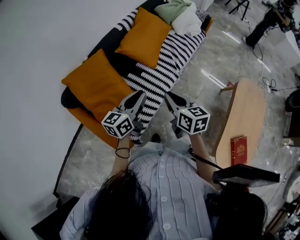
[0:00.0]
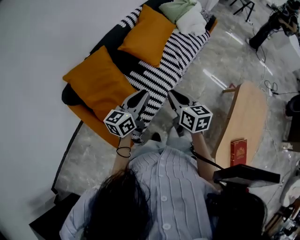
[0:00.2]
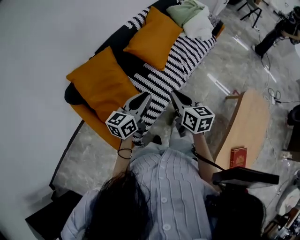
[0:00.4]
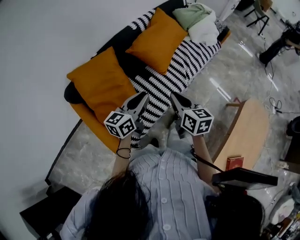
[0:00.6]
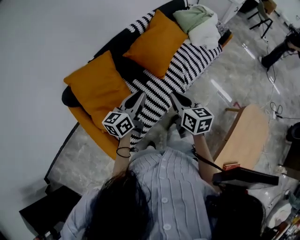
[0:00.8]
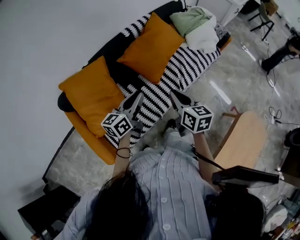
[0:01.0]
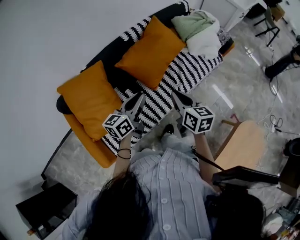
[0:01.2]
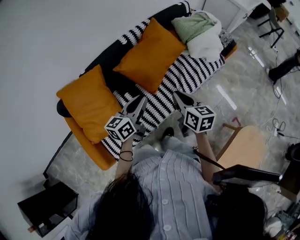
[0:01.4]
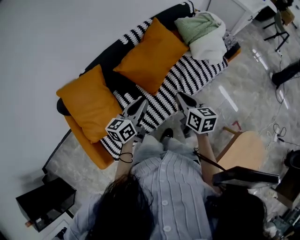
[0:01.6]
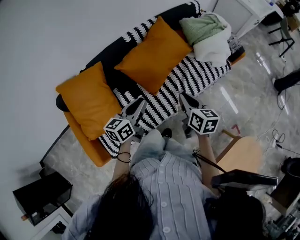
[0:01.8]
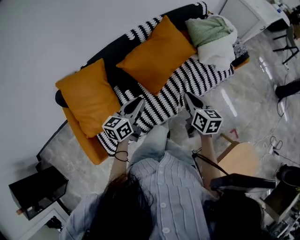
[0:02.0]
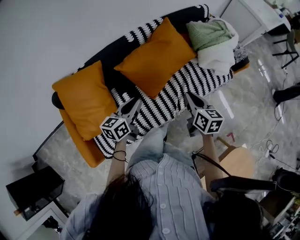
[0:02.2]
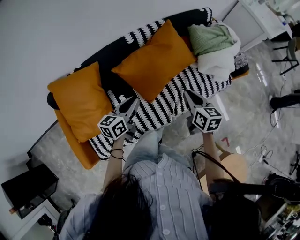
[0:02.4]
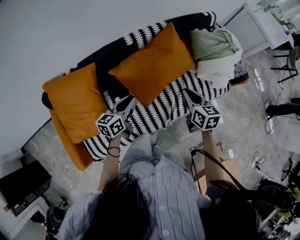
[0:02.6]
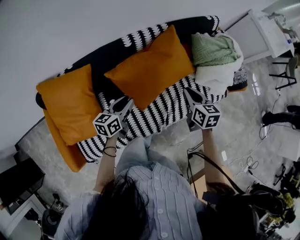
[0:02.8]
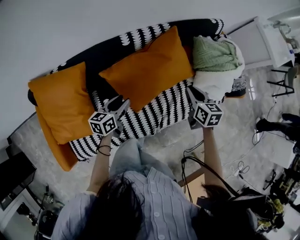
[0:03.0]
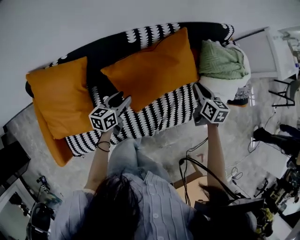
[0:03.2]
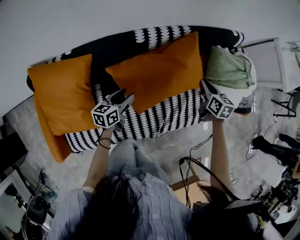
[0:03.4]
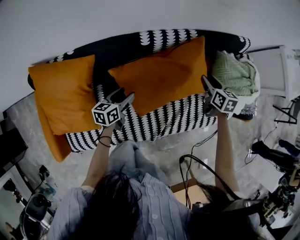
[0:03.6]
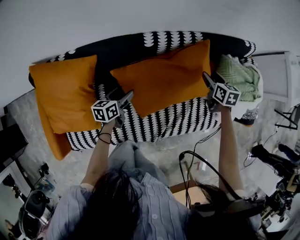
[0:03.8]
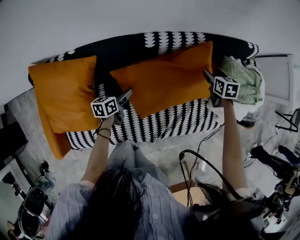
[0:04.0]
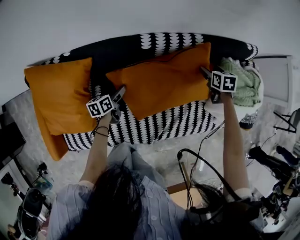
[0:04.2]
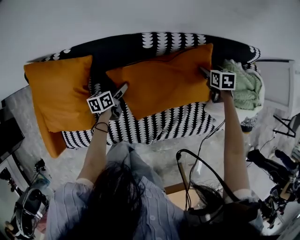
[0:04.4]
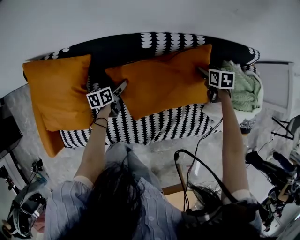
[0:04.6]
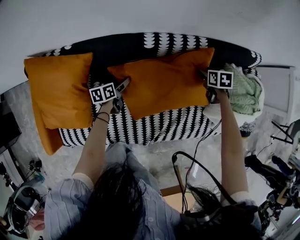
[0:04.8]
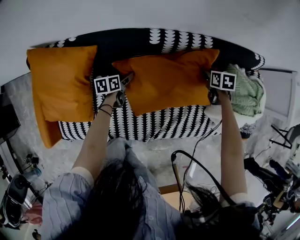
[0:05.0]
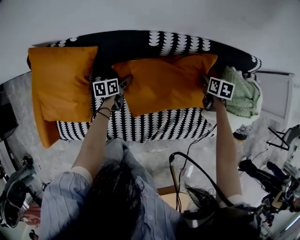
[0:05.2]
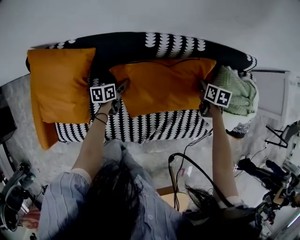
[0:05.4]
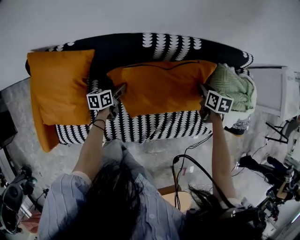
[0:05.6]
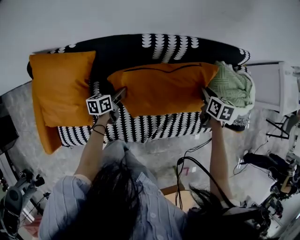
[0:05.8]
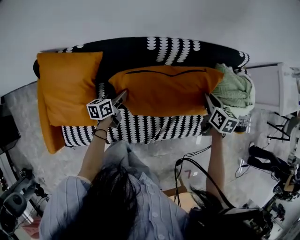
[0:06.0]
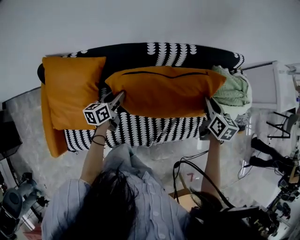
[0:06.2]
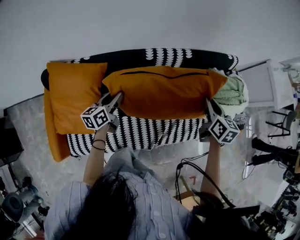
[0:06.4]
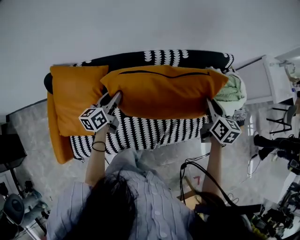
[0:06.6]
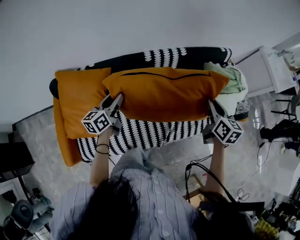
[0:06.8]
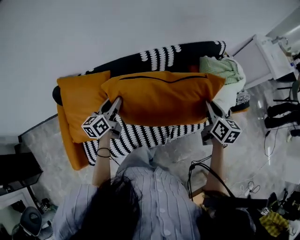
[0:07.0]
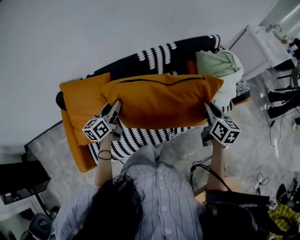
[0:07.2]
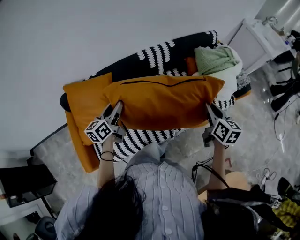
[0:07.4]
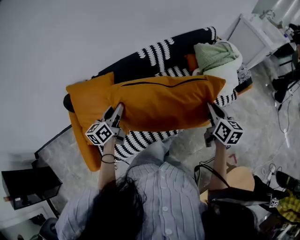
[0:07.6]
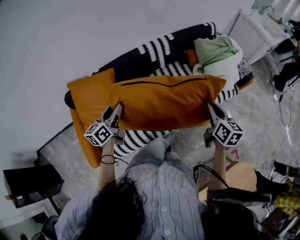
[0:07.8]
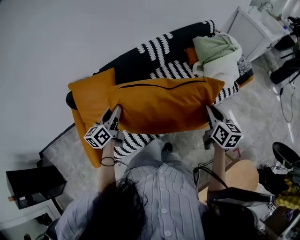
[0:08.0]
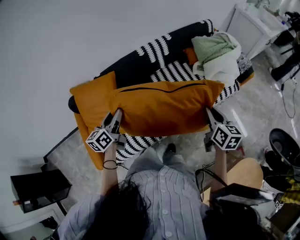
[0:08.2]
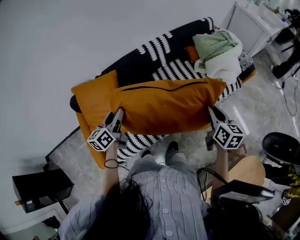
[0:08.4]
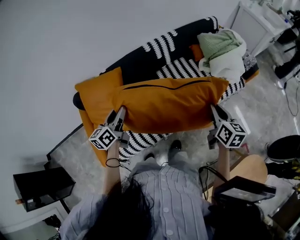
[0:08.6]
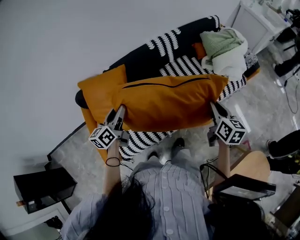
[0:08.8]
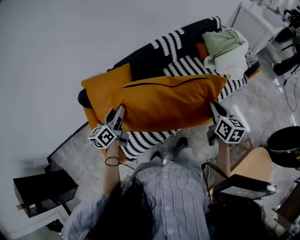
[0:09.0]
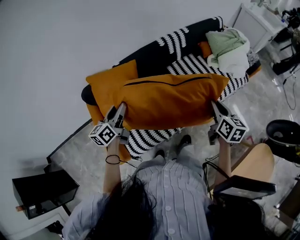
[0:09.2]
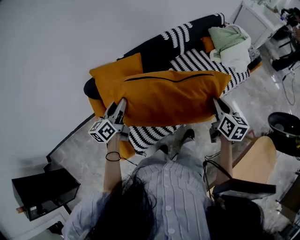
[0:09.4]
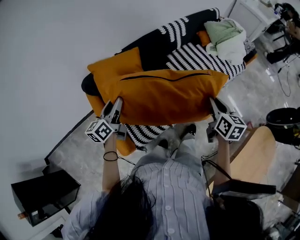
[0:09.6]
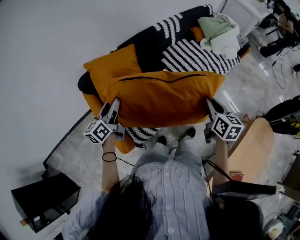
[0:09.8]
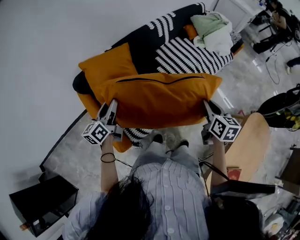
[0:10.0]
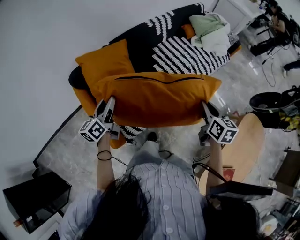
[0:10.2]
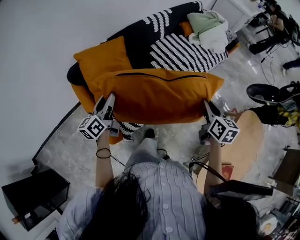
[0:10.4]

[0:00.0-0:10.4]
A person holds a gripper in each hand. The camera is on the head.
0:00.0 to 0:01.4: The grippers both shift forward and to the right by about 30 cm.
0:01.4 to 0:03.0: The left gripper goes some 30 cm forward and downward, and turns by some 20 degrees. The right gripper travels forward by some 35 cm, and swivels roughly 20 degrees.
0:03.0 to 0:04.4: The left gripper shifts approximately 25 cm downward, forward and to the left, rotates approximately 30 degrees, and opens, while the right gripper is displaced forward and downward by roughly 30 cm, swivels roughly 30 degrees, and opens.
0:04.4 to 0:06.0: The right gripper shifts about 20 cm backward and upward, changes its angle by approximately 30 degrees, and closes up. Meanwhile the left gripper travels upward and backward by about 10 cm, and closes its fingers.
0:06.0 to 0:07.4: The right gripper moves backward and upward, about 35 cm, and rotates some 30 degrees; the left gripper heads upward and backward, covering about 30 cm, and swivels approximately 20 degrees.
0:07.4 to 0:09.0: The right gripper moves backward and to the left, about 15 cm; the left gripper is displaced to the left and backward by roughly 15 cm.
0:09.0 to 0:10.4: The right gripper is displaced backward by about 25 cm, while the left gripper moves backward and to the left, about 20 cm.

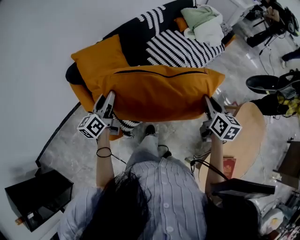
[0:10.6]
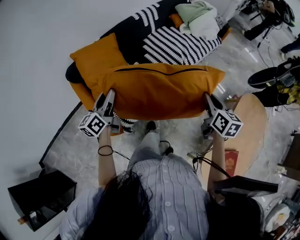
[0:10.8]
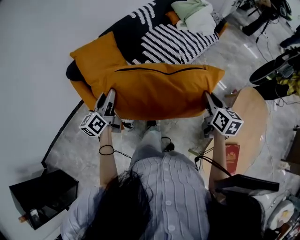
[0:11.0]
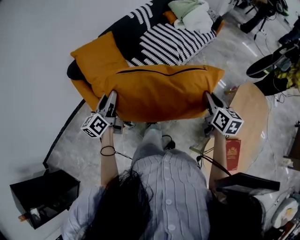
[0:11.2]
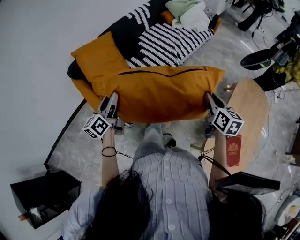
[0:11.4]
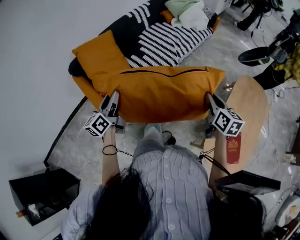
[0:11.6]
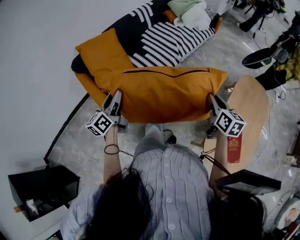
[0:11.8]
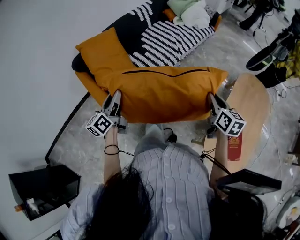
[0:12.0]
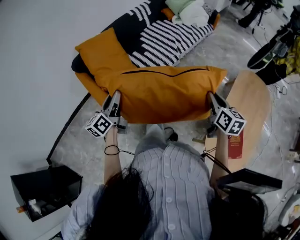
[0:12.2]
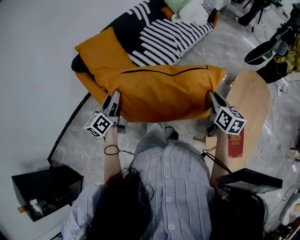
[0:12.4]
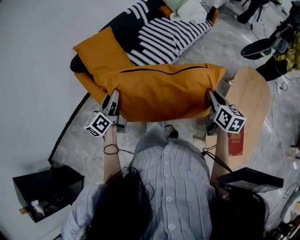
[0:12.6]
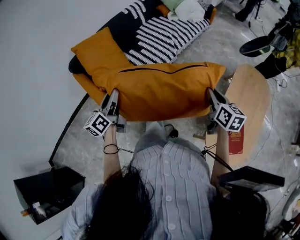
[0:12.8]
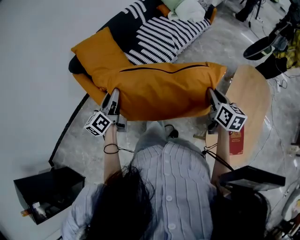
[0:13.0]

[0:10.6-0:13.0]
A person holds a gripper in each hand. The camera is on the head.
0:10.6 to 0:11.8: Both grippers travel together backward and to the right, roughly 25 cm.
0:11.8 to 0:13.0: There are only small adjustments of the grippers.

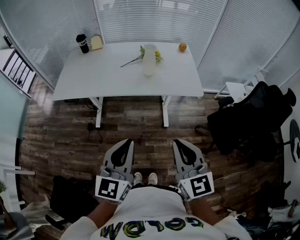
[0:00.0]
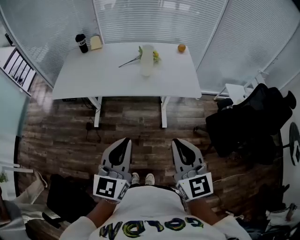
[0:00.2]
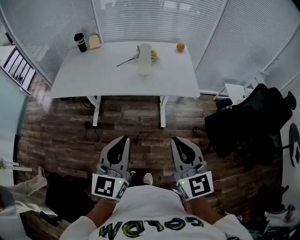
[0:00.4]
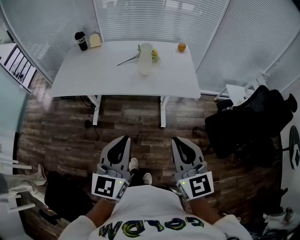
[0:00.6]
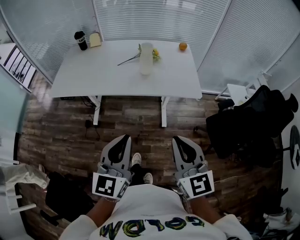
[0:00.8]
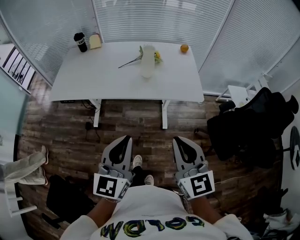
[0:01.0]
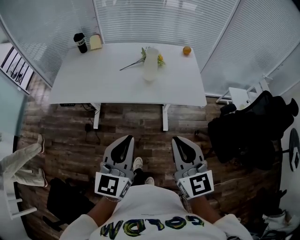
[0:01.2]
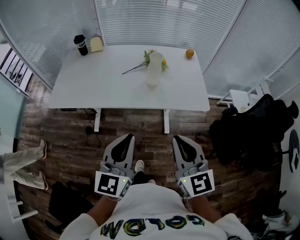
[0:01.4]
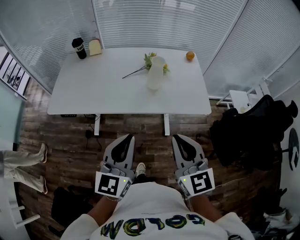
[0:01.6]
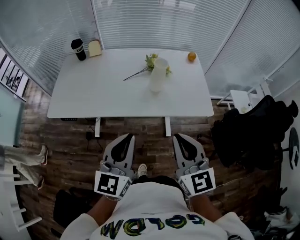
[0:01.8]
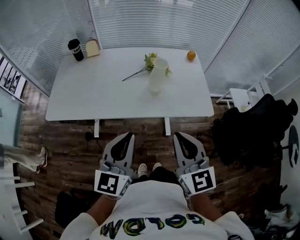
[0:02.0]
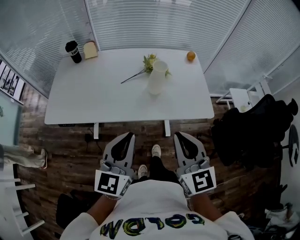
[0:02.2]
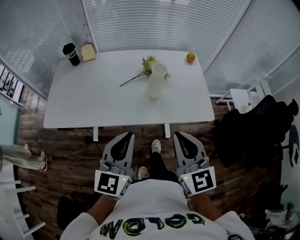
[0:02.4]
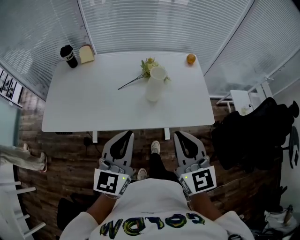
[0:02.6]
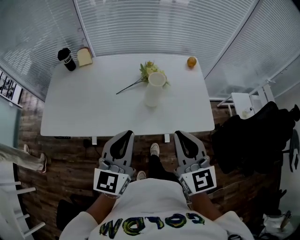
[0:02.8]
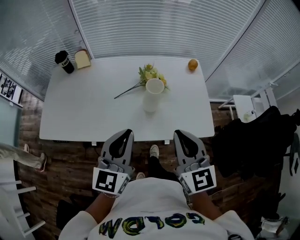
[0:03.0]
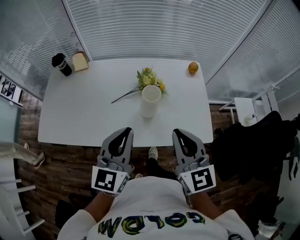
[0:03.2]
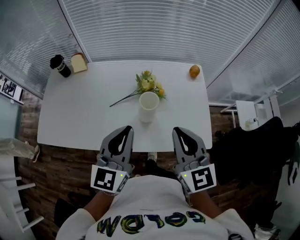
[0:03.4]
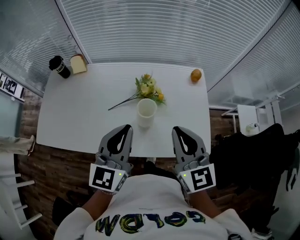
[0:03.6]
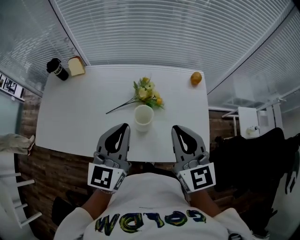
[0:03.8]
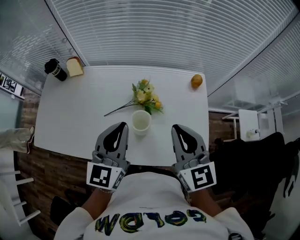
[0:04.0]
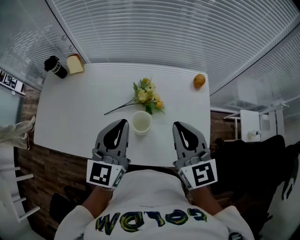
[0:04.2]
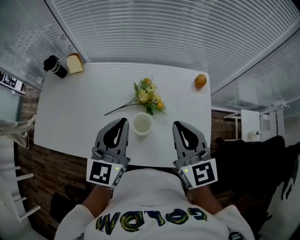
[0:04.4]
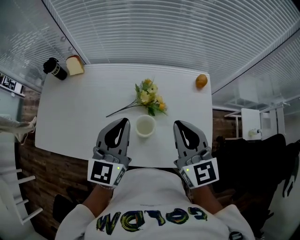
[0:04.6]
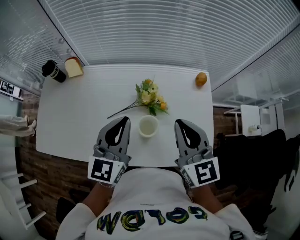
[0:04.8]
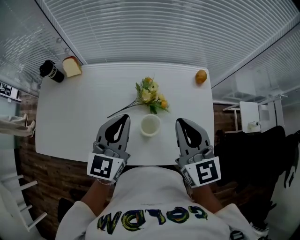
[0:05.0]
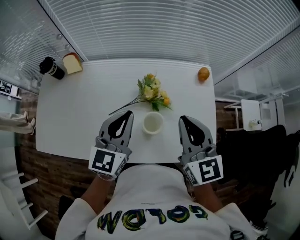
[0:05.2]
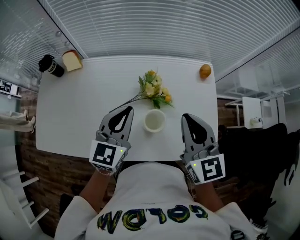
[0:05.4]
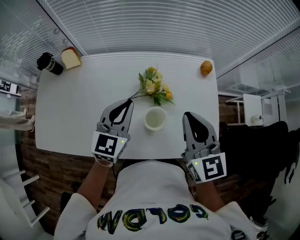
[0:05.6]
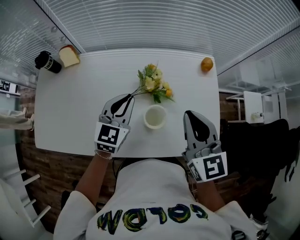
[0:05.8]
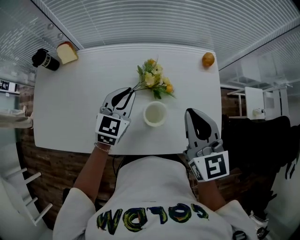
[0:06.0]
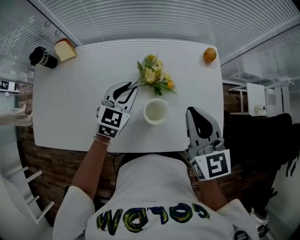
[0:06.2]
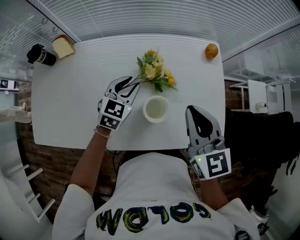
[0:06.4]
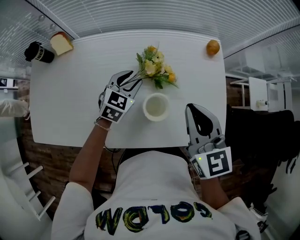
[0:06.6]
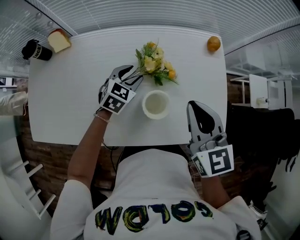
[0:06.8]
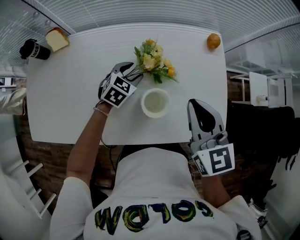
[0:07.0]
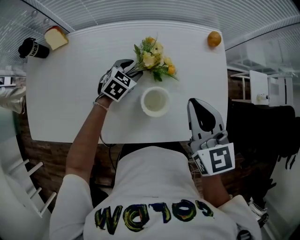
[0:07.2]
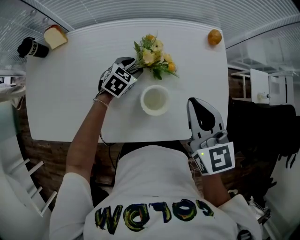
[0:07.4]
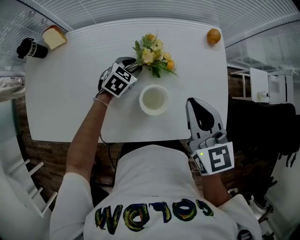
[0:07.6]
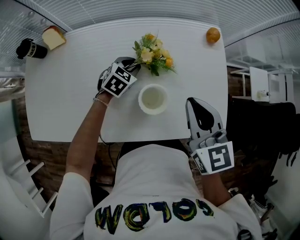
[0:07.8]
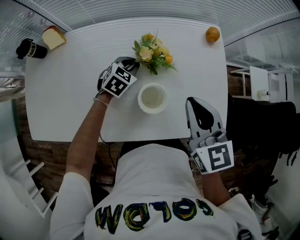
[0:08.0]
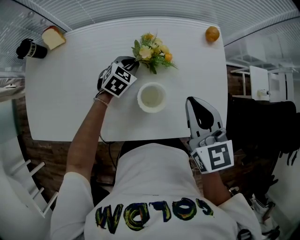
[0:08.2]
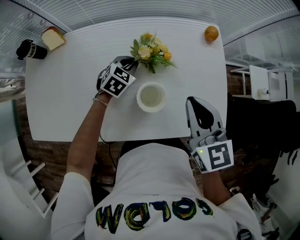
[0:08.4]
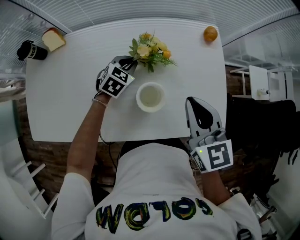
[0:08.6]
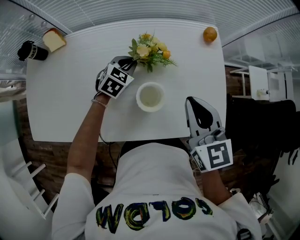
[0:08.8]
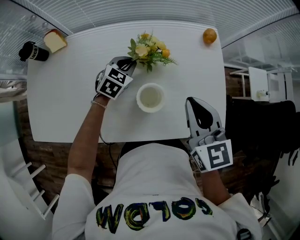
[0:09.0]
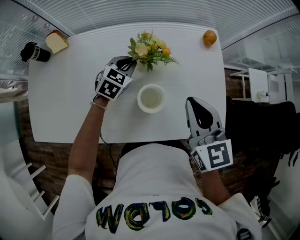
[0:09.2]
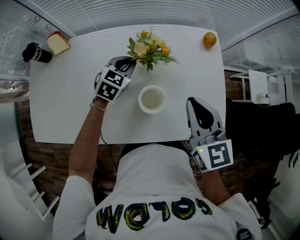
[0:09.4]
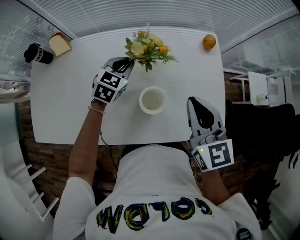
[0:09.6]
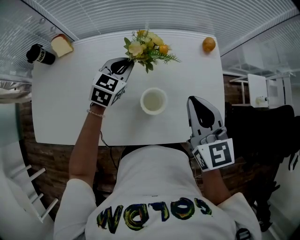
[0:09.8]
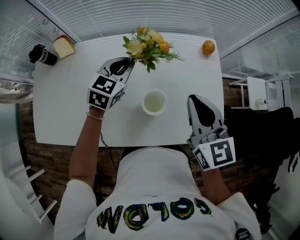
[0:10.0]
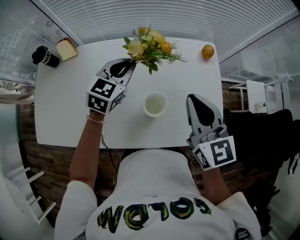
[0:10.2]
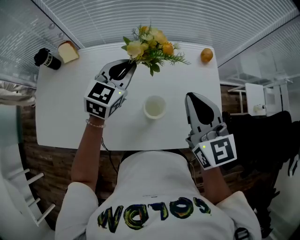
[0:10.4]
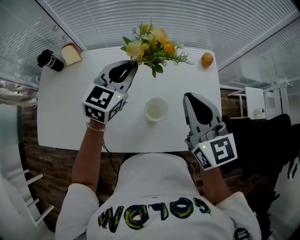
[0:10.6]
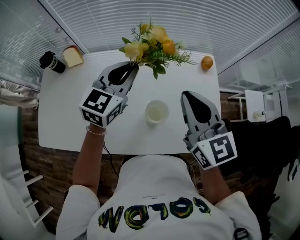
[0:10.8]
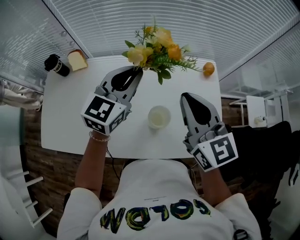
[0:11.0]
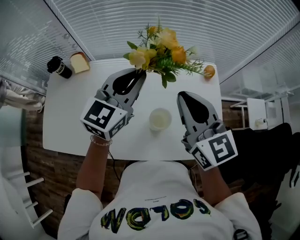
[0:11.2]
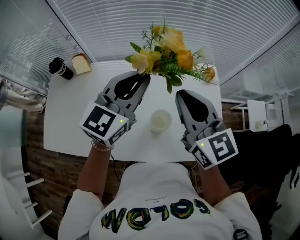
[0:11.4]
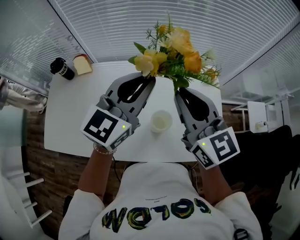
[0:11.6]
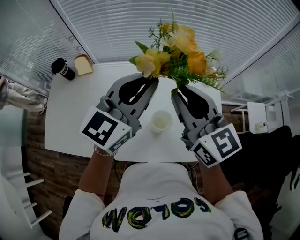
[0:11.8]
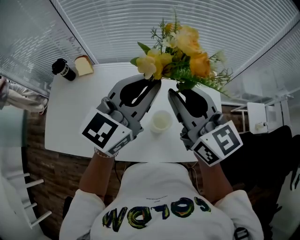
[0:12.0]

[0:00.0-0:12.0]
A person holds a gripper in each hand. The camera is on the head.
0:00.0 to 0:01.6: The two grippers go some 15 cm forward.
0:01.6 to 0:03.0: The two grippers go approximately 20 cm forward.
0:03.0 to 0:04.4: Both grippers travel together forward, some 20 cm.
0:04.4 to 0:06.0: The left gripper travels downward and forward by approximately 15 cm, and swivels approximately 20 degrees.
0:06.0 to 0:07.6: The right gripper travels downward by approximately 5 cm. Meanwhile the left gripper heads downward, covering some 15 cm, and turns by roughly 30 degrees.
0:07.6 to 0:09.0: The left gripper closes its fingers.
0:09.0 to 0:10.4: The right gripper is displaced upward by about 5 cm, while the left gripper moves upward, approximately 20 cm, and changes its angle by some 20 degrees.
0:10.4 to 0:12.0: The left gripper moves upward and backward, some 20 cm, and changes its angle by approximately 20 degrees. Meanwhile the right gripper goes approximately 10 cm upward and to the left.
